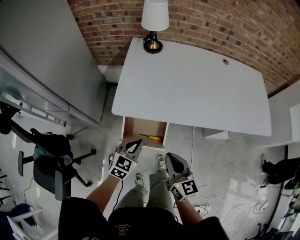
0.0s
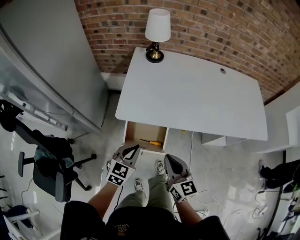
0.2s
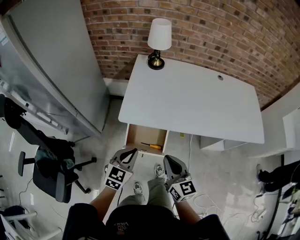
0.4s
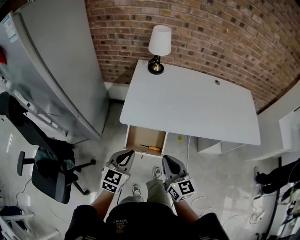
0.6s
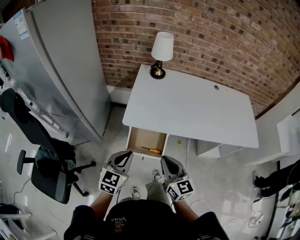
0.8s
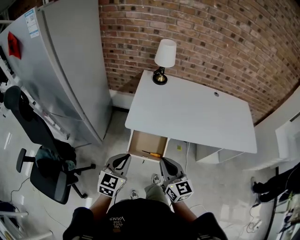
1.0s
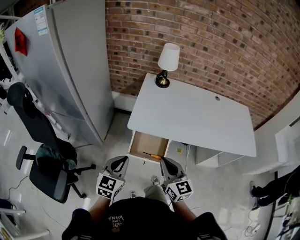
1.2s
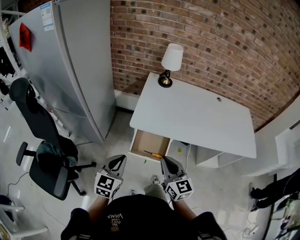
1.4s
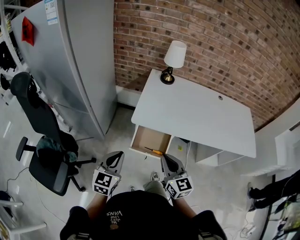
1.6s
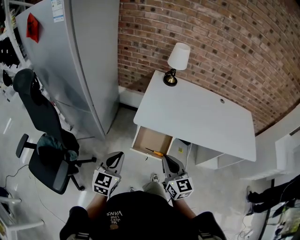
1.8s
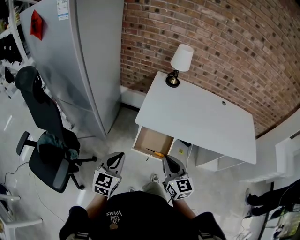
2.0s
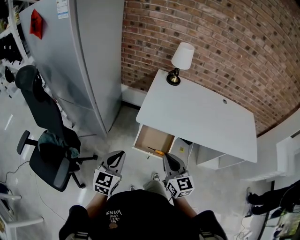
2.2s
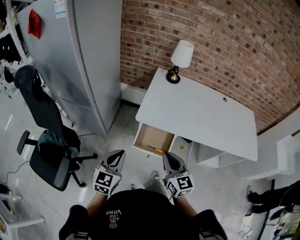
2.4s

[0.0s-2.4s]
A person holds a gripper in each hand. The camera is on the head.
0.0s to 1.2s: The right gripper travels upward, to the left and backward by about 15 cm; the left gripper heads upward, backward and to the left, covering some 25 cm, and rotates approximately 20 degrees.
1.2s to 2.4s: The left gripper travels to the left by approximately 5 cm.

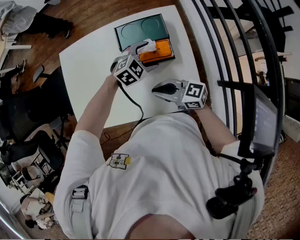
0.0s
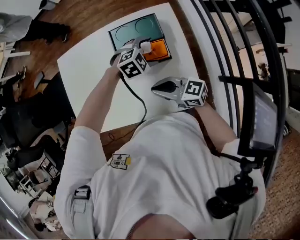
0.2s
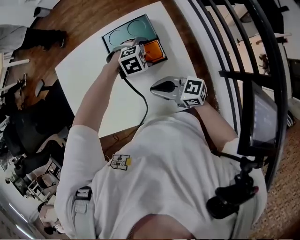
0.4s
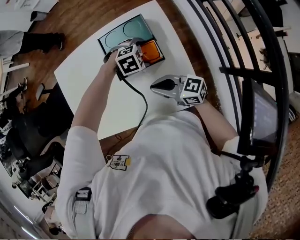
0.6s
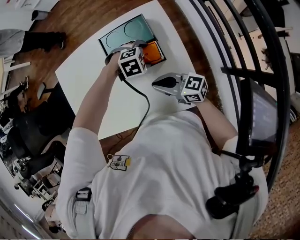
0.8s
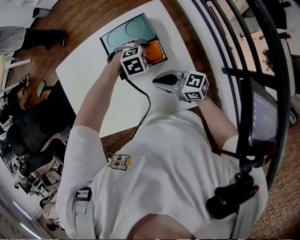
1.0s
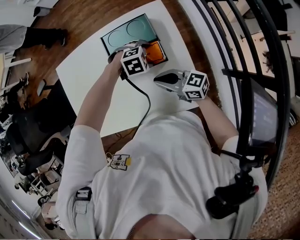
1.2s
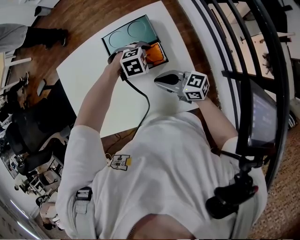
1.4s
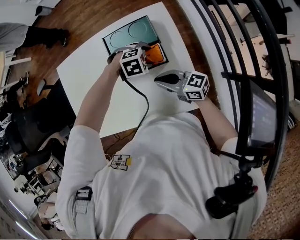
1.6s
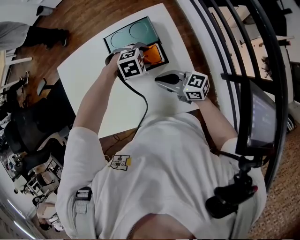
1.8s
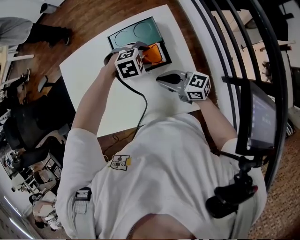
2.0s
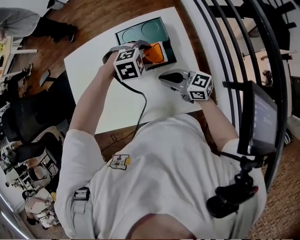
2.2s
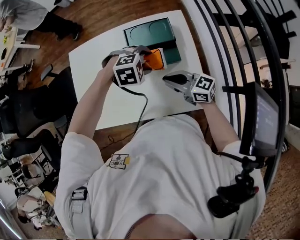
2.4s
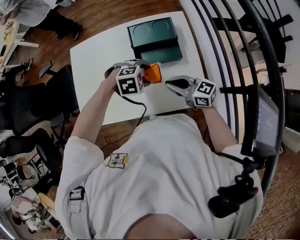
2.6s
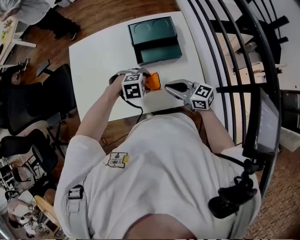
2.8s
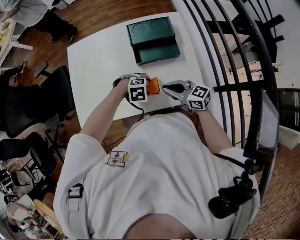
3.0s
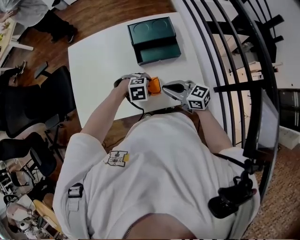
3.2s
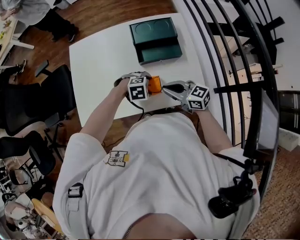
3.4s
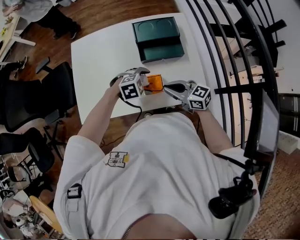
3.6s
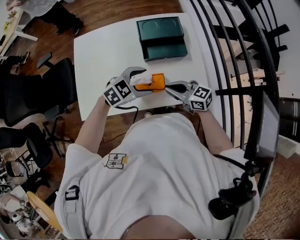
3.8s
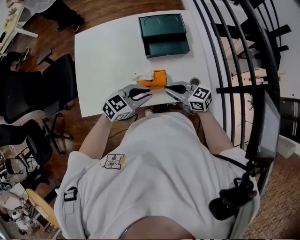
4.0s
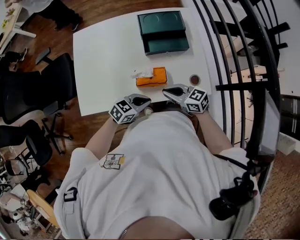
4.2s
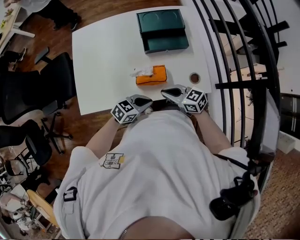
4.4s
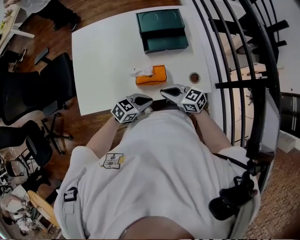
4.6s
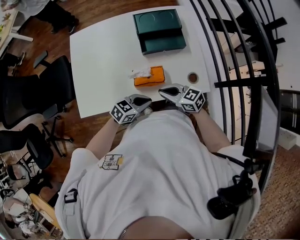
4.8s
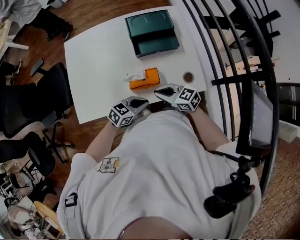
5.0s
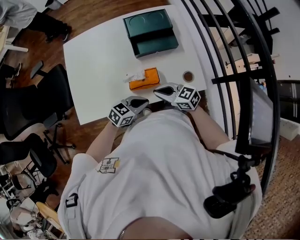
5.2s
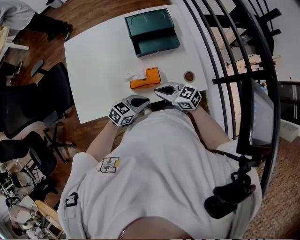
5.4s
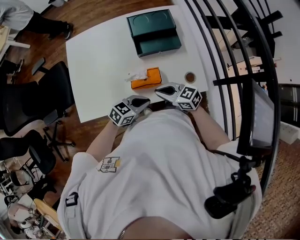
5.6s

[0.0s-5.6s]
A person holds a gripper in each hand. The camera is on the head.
0.0s to 1.4s: The left gripper changes its angle by approximately 30 degrees.
1.4s to 2.8s: The left gripper goes upward and returns, roughly 10 cm each way.
2.8s to 4.2s: The left gripper moves up and down over approximately 10 cm, changing direction 2 times, angles its fingers upward, by about 40 degrees, and closes its fingers, while the right gripper moves some 5 cm.
4.2s to 5.6s: The grippers stay close to where they were, moving slightly.

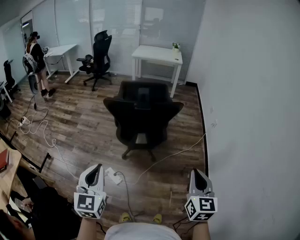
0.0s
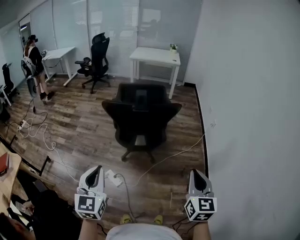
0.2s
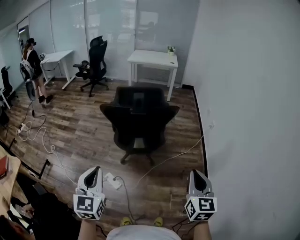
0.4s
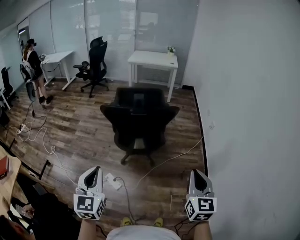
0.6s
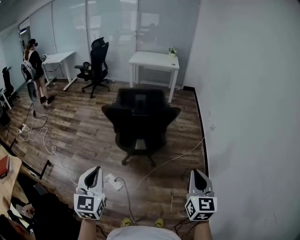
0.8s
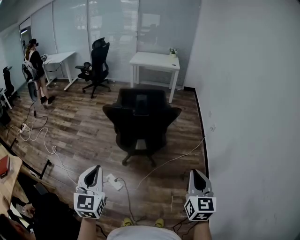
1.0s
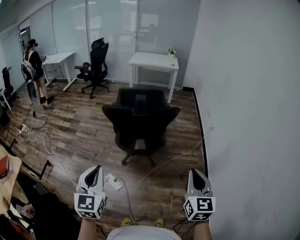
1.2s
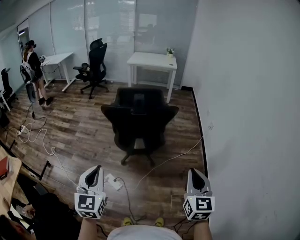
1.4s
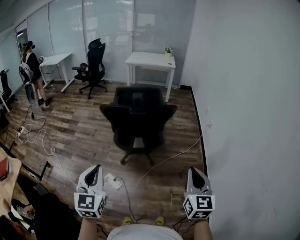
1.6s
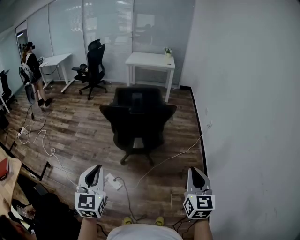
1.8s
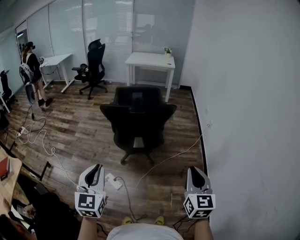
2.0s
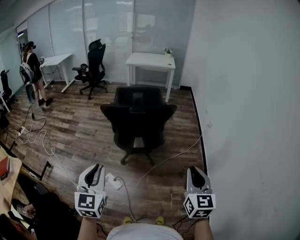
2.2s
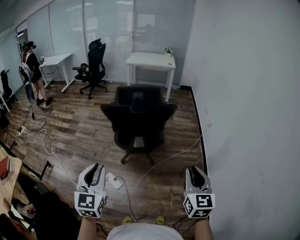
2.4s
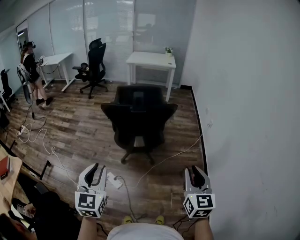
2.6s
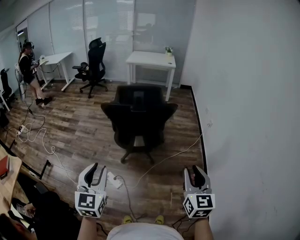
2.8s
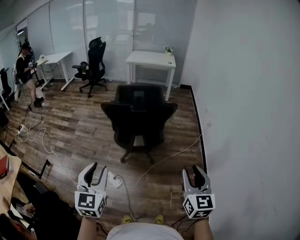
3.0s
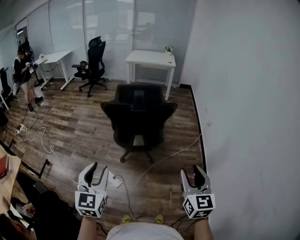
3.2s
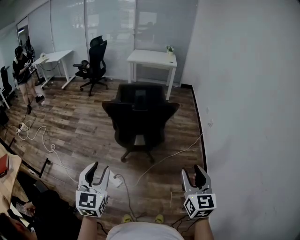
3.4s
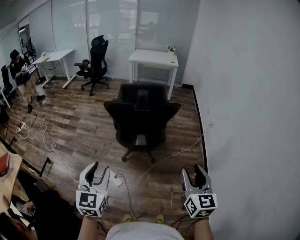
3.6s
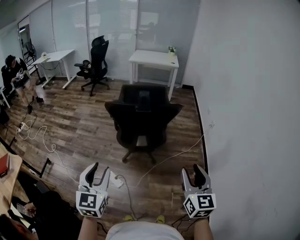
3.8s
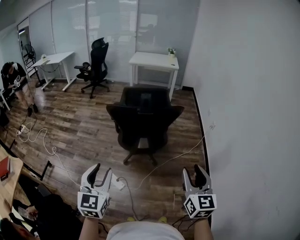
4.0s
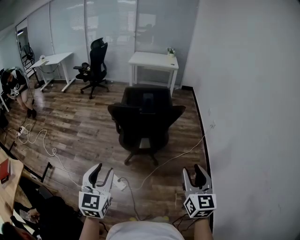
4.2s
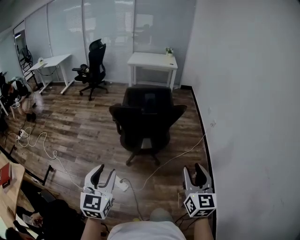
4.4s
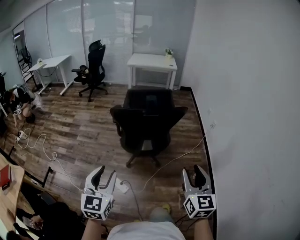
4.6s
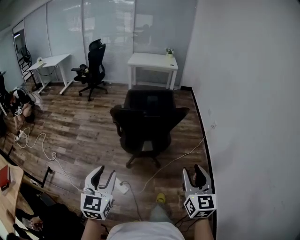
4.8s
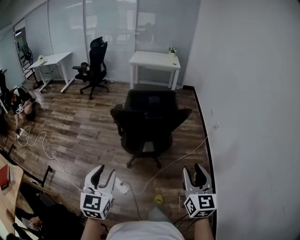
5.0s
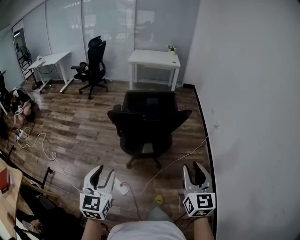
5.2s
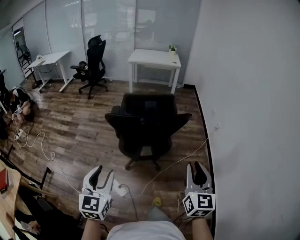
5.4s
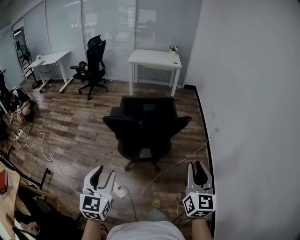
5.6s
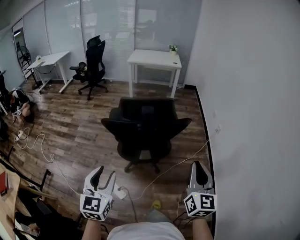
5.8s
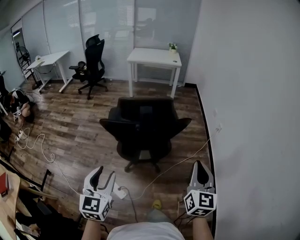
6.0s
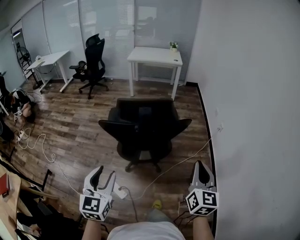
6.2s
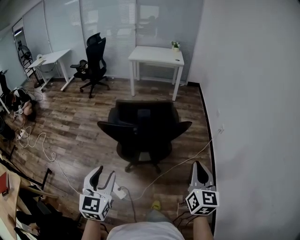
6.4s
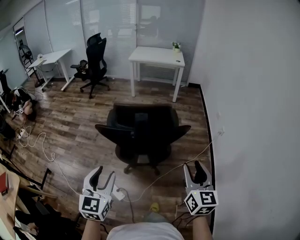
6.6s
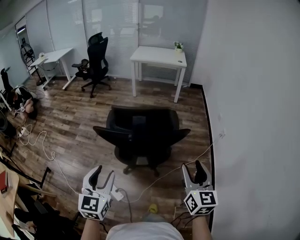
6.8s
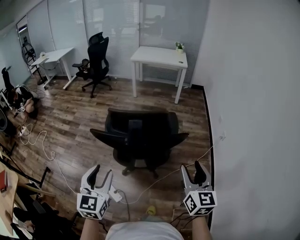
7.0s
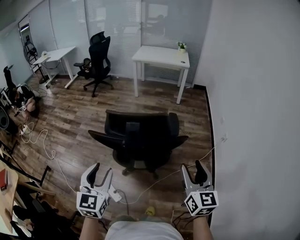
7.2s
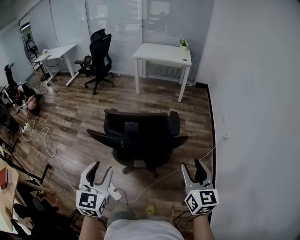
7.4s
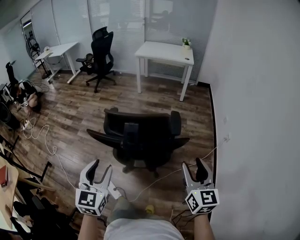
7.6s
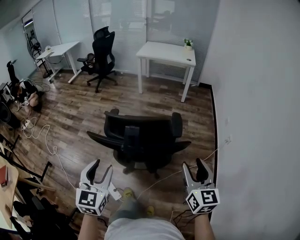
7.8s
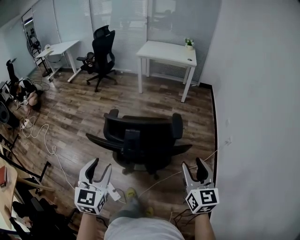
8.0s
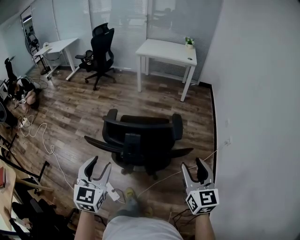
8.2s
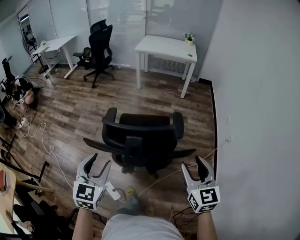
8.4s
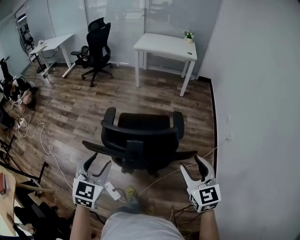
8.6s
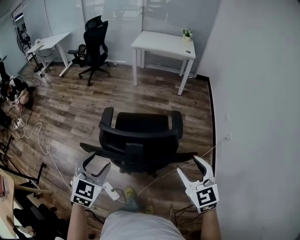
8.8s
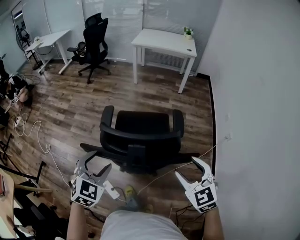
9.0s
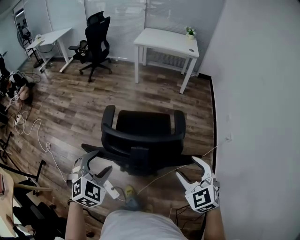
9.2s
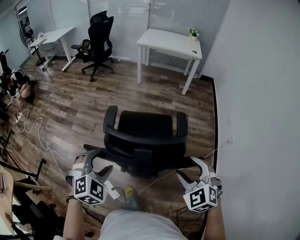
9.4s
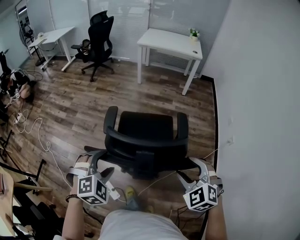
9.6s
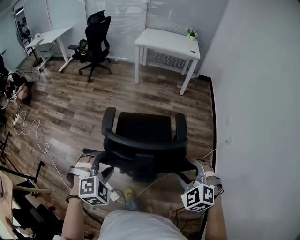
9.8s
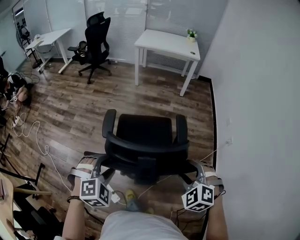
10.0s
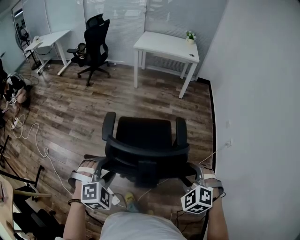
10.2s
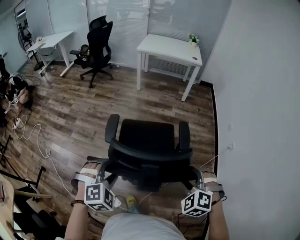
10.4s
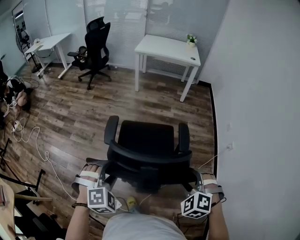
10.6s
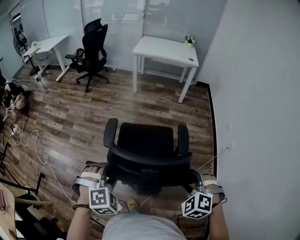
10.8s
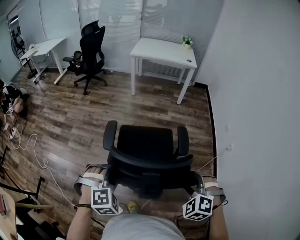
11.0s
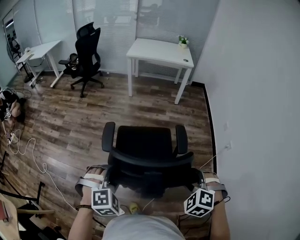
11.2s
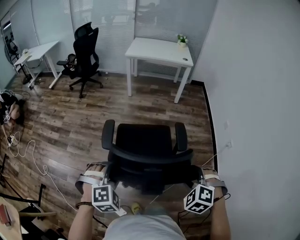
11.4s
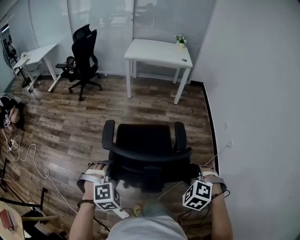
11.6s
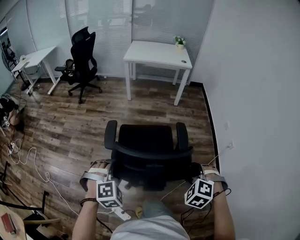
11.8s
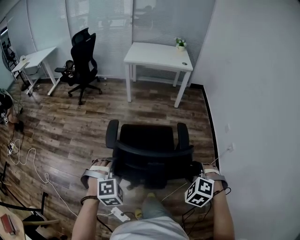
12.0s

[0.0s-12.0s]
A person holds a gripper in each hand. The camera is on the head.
0.0s to 1.6s: The grippers move only a little.
1.6s to 3.0s: The right gripper opens. The left gripper opens its fingers.
3.0s to 4.4s: The grippers both shift to the left by approximately 5 cm.
4.4s to 6.0s: The grippers both shift forward by approximately 20 cm. The right gripper closes its fingers.
6.0s to 7.6s: The right gripper heads forward, covering some 20 cm, swivels approximately 20 degrees, and opens up. Meanwhile the left gripper goes about 20 cm forward and to the right.
7.6s to 9.0s: The left gripper shifts approximately 15 cm forward, and changes its angle by about 30 degrees; the right gripper goes approximately 15 cm forward and to the left, and changes its angle by approximately 40 degrees.
9.0s to 10.4s: The left gripper shifts by some 5 cm, and swivels some 30 degrees. The right gripper moves downward, some 5 cm, and swivels approximately 40 degrees.
10.4s to 12.0s: The two grippers go some 15 cm forward.

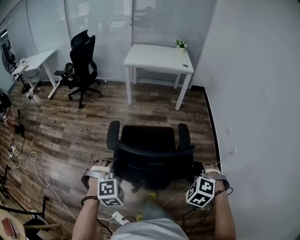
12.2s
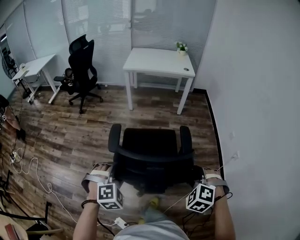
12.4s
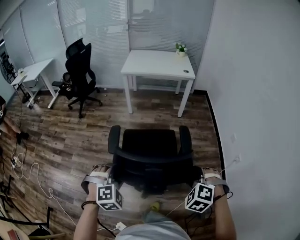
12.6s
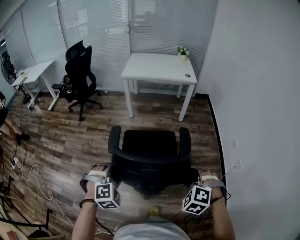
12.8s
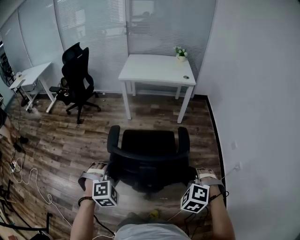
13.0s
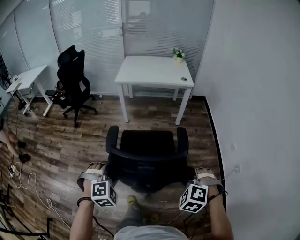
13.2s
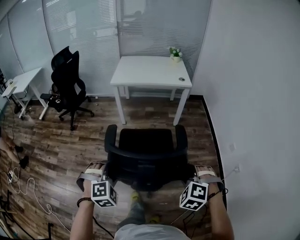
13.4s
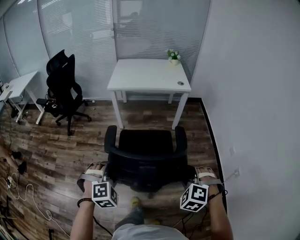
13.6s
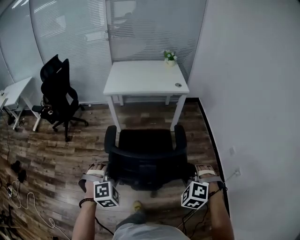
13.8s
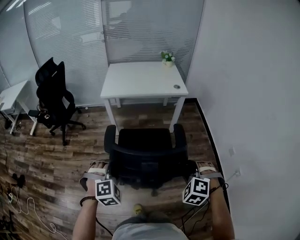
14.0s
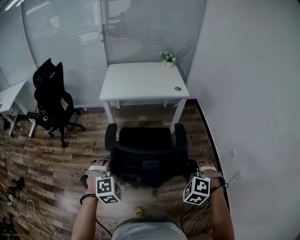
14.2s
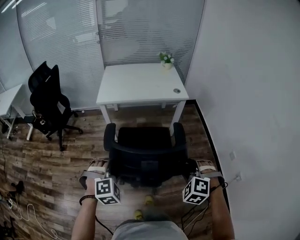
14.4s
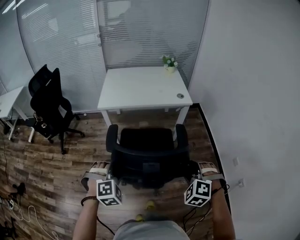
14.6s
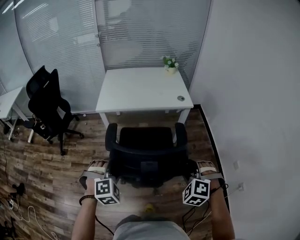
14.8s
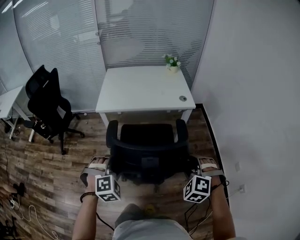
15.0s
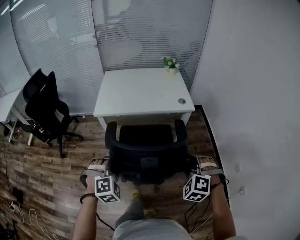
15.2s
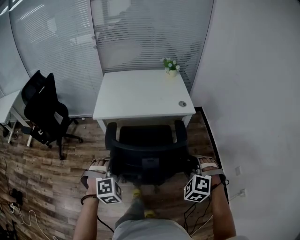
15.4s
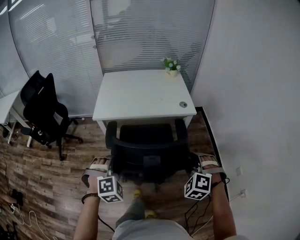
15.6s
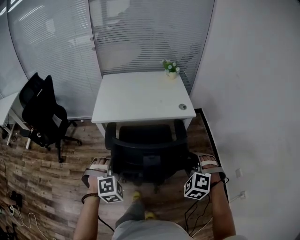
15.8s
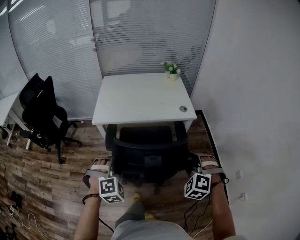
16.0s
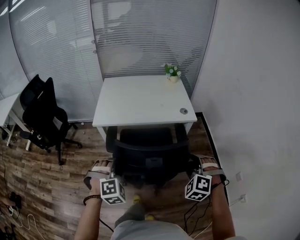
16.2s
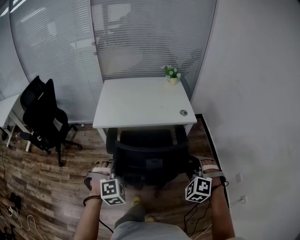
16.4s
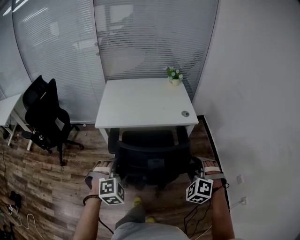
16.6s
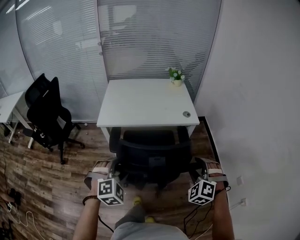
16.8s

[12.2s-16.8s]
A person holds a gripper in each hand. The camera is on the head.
12.2s to 13.8s: The pair of grippers is taken forward, roughly 40 cm.
13.8s to 15.2s: The two grippers go approximately 35 cm forward.
15.2s to 16.8s: Both grippers move forward, some 5 cm.
